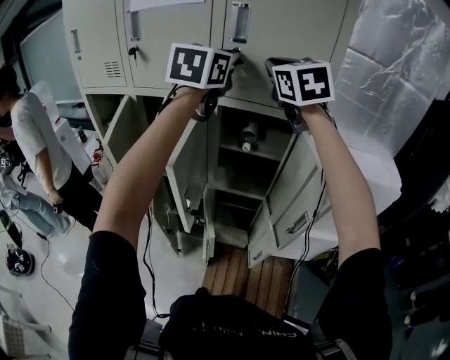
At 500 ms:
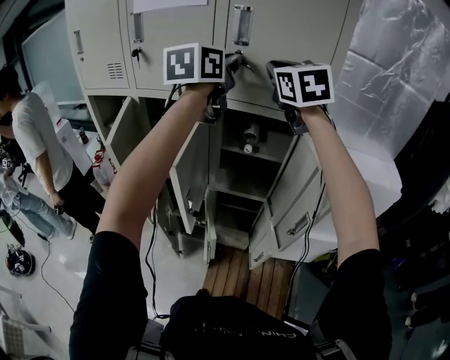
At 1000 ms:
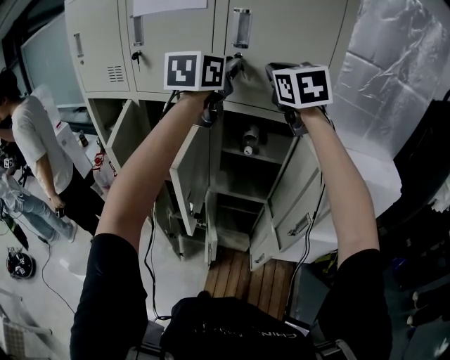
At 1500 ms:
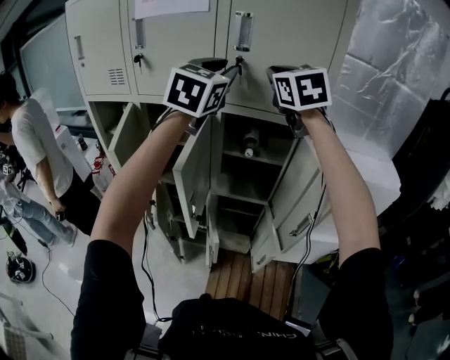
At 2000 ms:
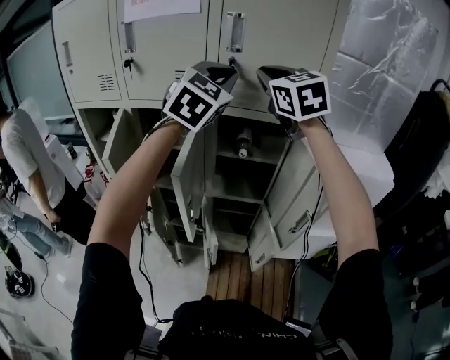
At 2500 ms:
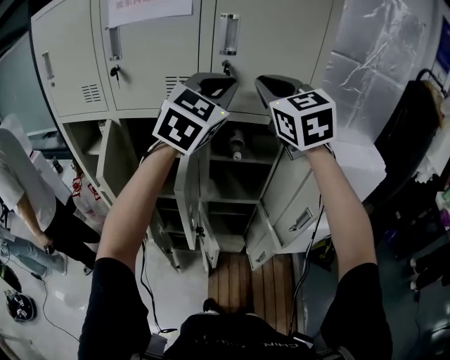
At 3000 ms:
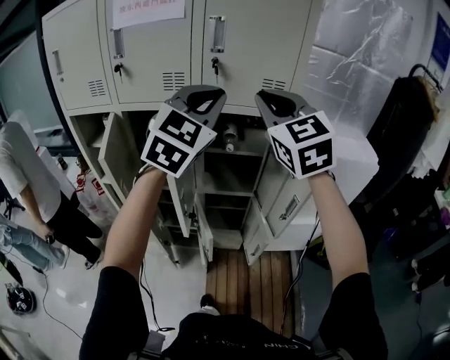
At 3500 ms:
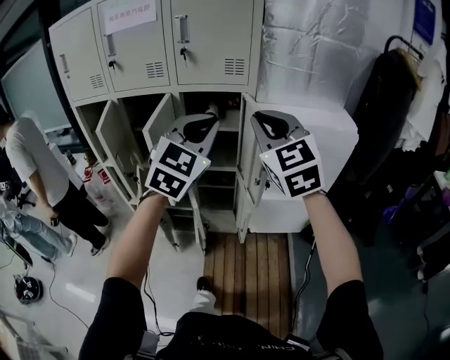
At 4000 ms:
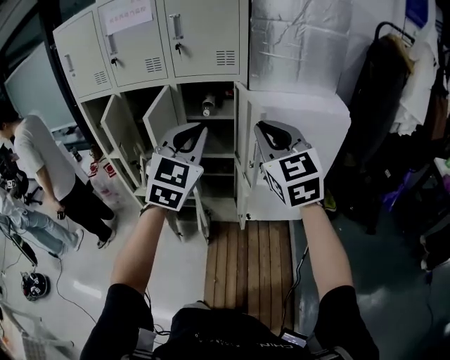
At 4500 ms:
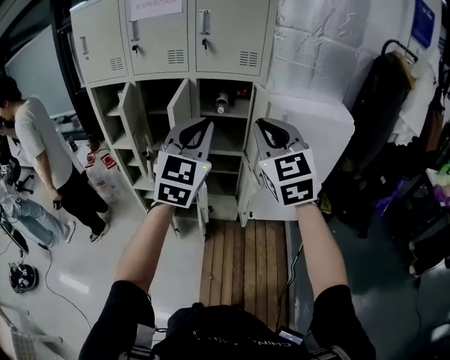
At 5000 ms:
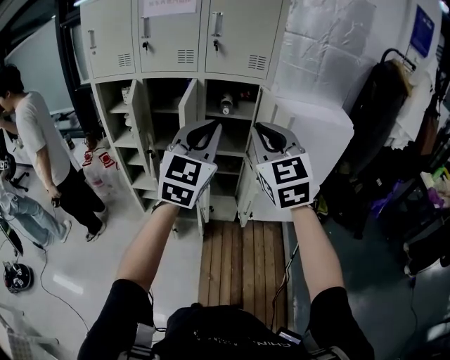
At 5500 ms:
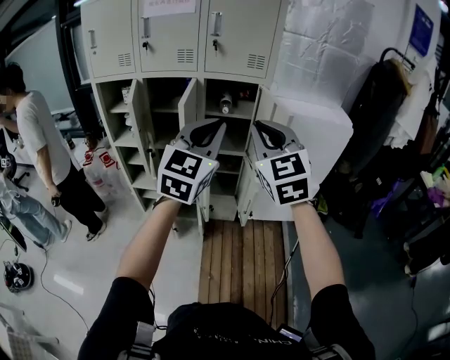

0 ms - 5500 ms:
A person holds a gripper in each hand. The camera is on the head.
0 ms - 2000 ms: The left gripper turns by roughly 30 degrees.
2000 ms - 3500 ms: The two grippers go approximately 30 cm backward and to the right.
3500 ms - 5500 ms: Both grippers move backward and to the left, roughly 15 cm.

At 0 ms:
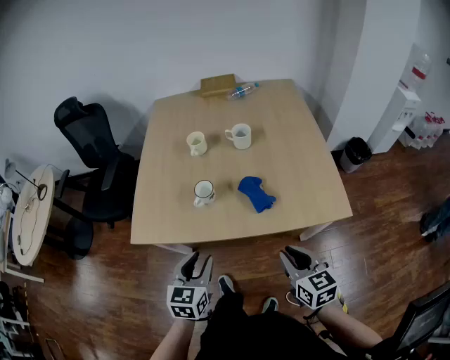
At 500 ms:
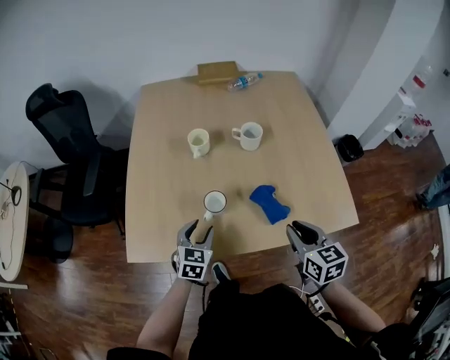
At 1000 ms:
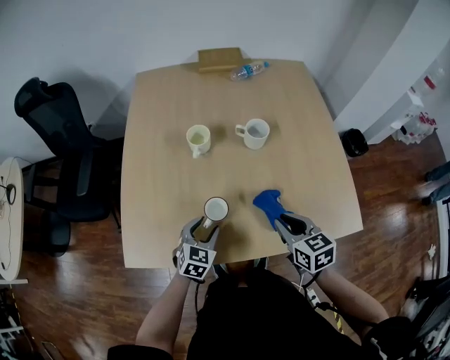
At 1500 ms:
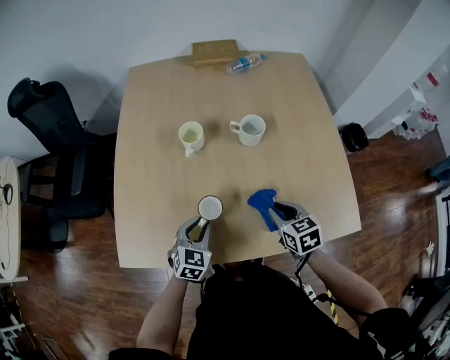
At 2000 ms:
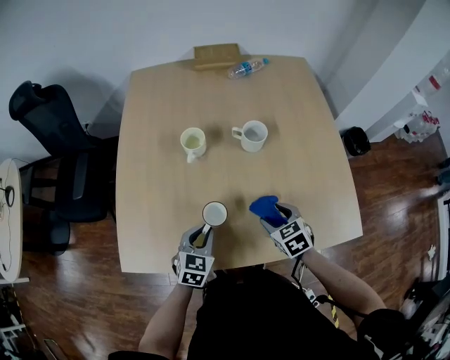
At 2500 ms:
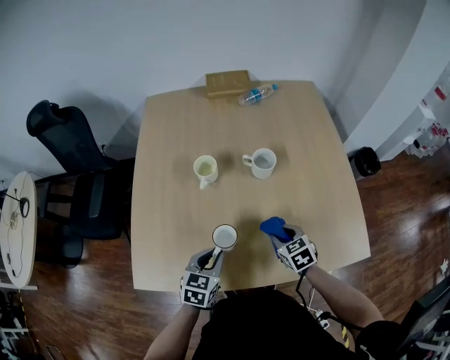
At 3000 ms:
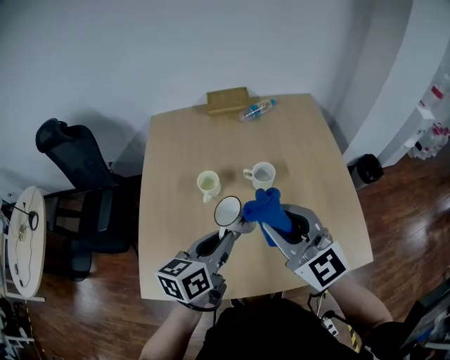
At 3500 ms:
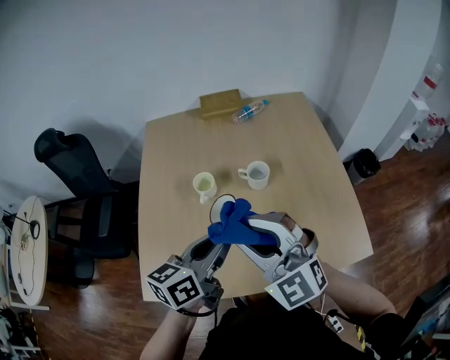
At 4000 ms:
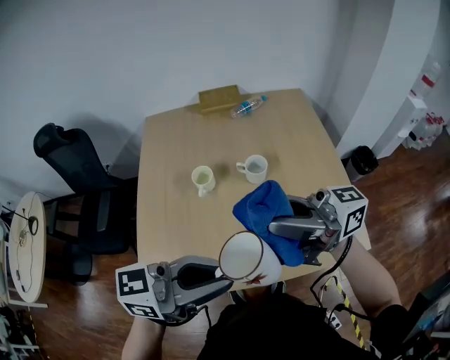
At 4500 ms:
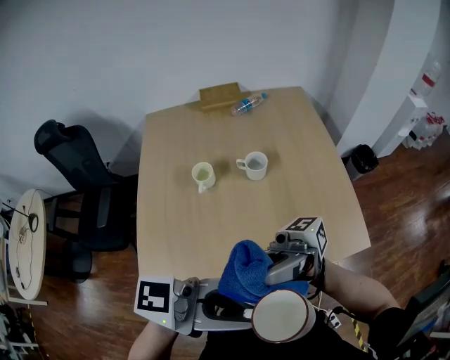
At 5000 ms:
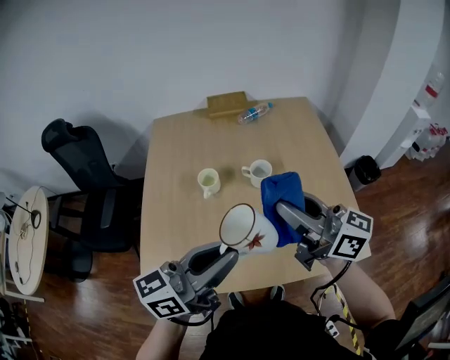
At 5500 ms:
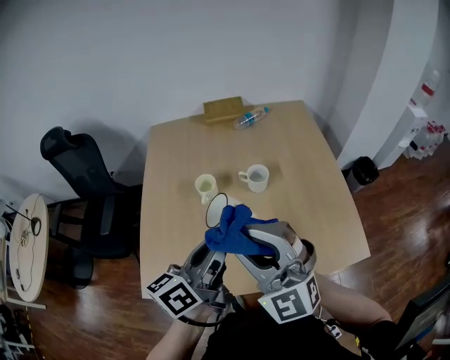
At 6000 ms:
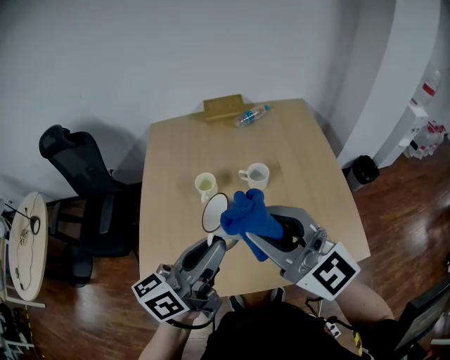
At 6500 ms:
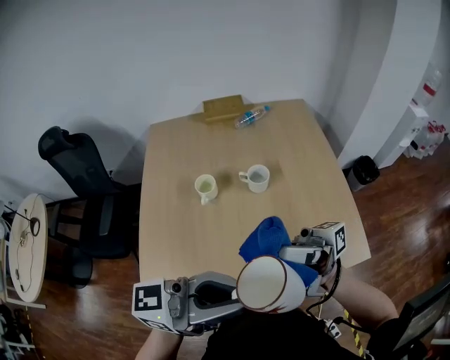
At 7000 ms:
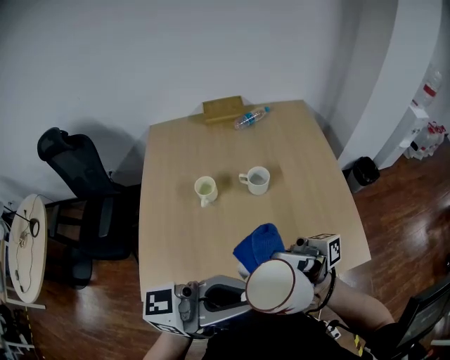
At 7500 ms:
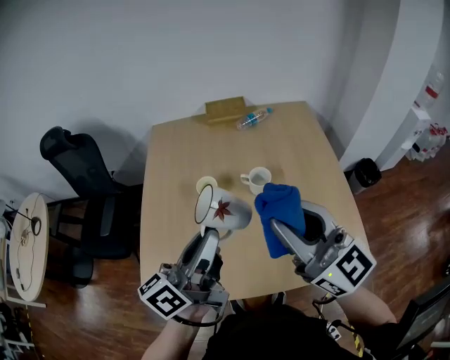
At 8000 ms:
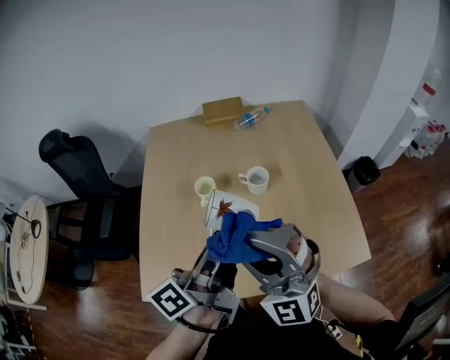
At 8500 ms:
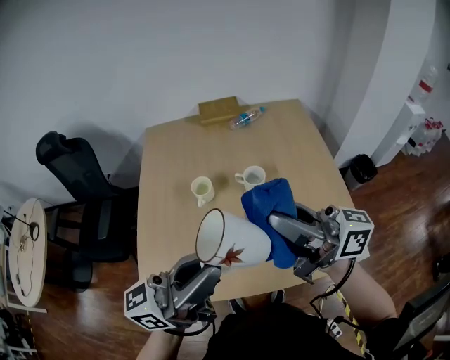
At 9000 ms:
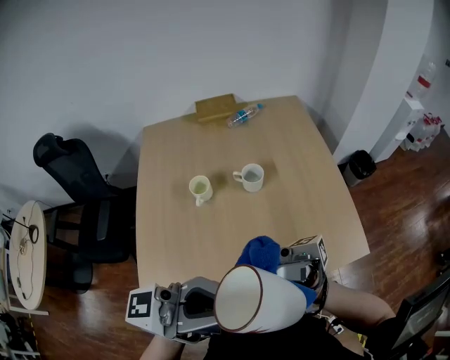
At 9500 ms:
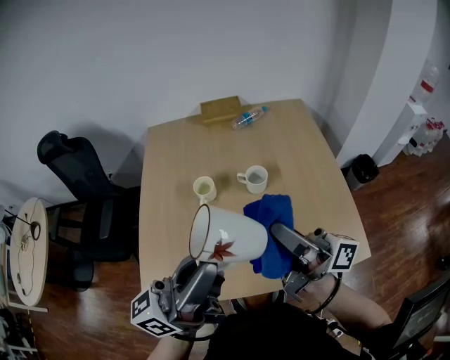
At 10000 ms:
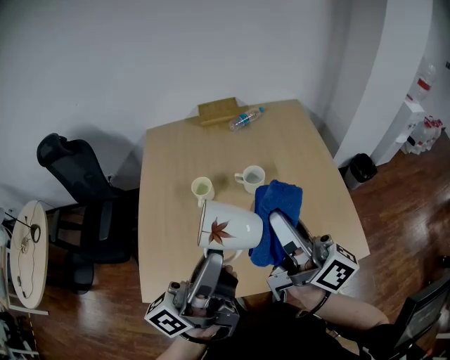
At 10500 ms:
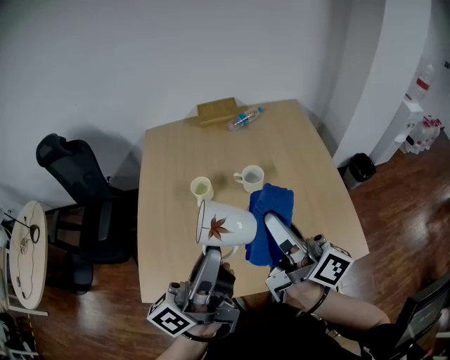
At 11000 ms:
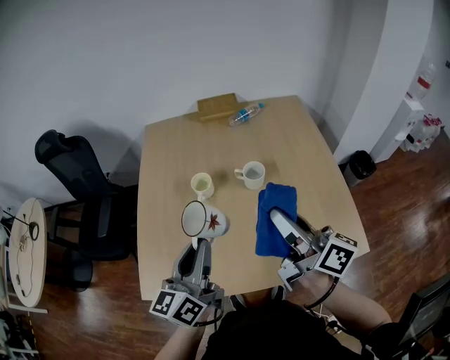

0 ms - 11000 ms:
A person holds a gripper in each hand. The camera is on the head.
0 ms - 2000 ms: Both grippers travel together forward and downward, about 30 cm. The left gripper closes up, while the right gripper changes its angle by approximately 30 degrees, and opens.
2000 ms - 3500 ms: The grippers both shift upward by roughly 30 cm. The left gripper swivels roughly 40 degrees, while the right gripper tilts its fingers roughly 40 degrees upward, and closes its fingers.
3500 ms - 5500 ms: The left gripper travels upward and back again, approximately 10 cm each way.
5500 ms - 7500 ms: The right gripper changes place by some 10 cm, and rolls clockwise, seen from behind, by some 40 degrees.
7500 ms - 9000 ms: The left gripper shifts by roughly 15 cm, and rotates approximately 50 degrees. Meanwhile the right gripper ends up approximately 10 cm from where it was, and rolls clockwise, seen from behind, by some 100 degrees.
9000 ms - 11000 ms: The left gripper moves downward, roughly 15 cm, and tilts its fingers about 30 degrees downward. Meanwhile the right gripper shifts by some 15 cm, and angles its fingers downward, by approximately 50 degrees.

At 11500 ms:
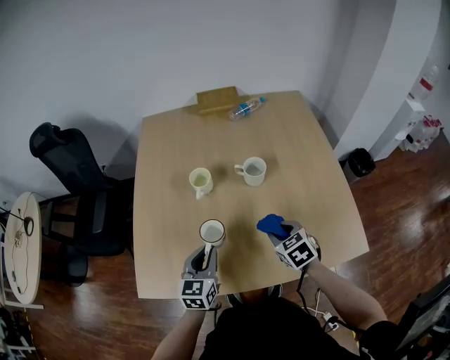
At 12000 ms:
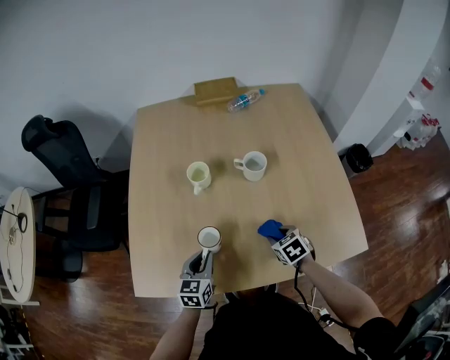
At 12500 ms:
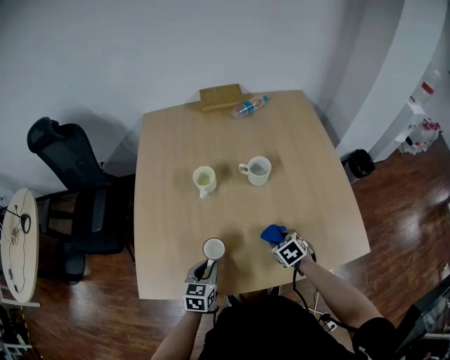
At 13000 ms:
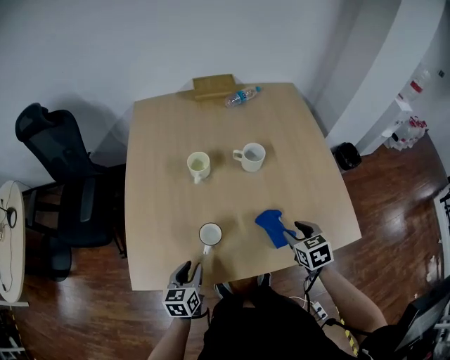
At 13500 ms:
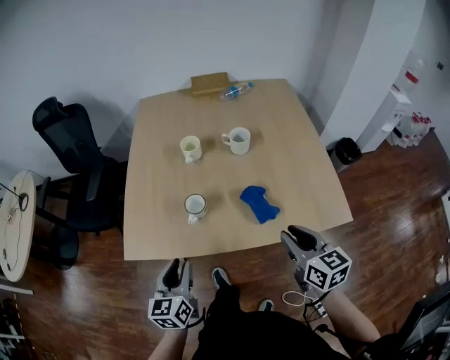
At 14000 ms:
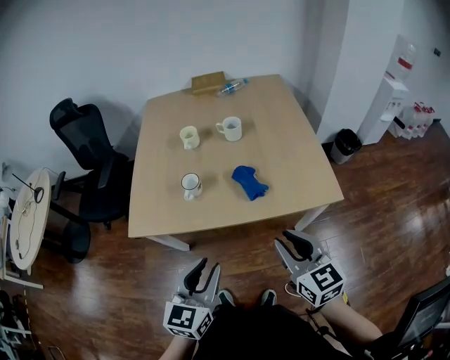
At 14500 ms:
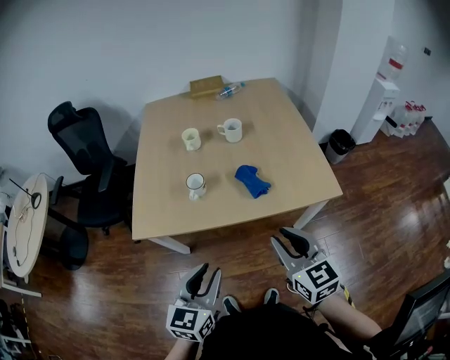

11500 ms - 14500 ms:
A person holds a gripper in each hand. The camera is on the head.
11500 ms - 13000 ms: The right gripper moves backward, about 5 cm, and goes downward and returns, about 10 cm each way; the left gripper travels downward, to the left and backward by about 15 cm.
13000 ms - 14500 ms: The left gripper goes roughly 35 cm backward, upward and to the right, and swivels some 20 degrees; the right gripper goes roughly 35 cm backward and upward, points its fingers roughly 40 degrees further upward, and closes.

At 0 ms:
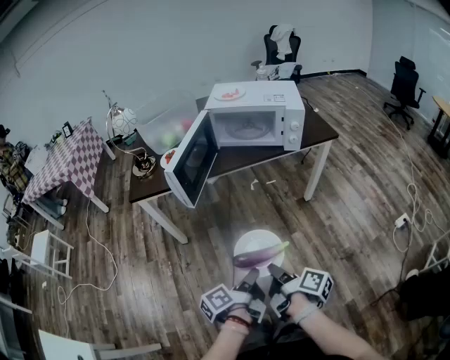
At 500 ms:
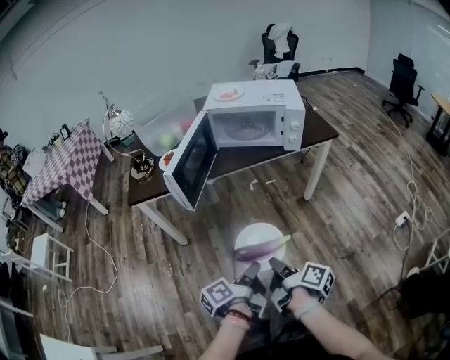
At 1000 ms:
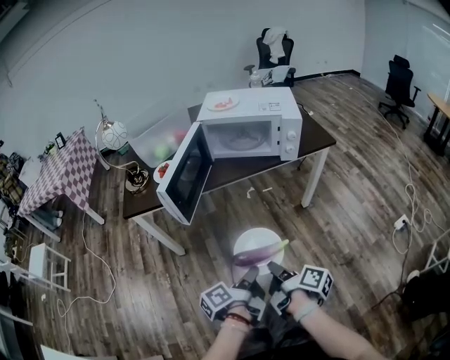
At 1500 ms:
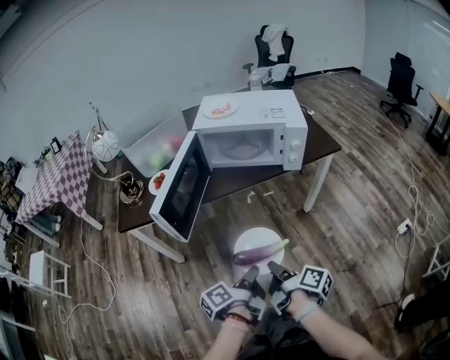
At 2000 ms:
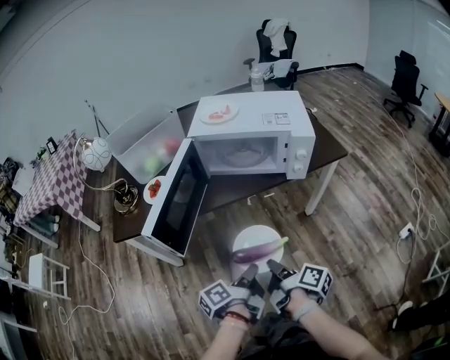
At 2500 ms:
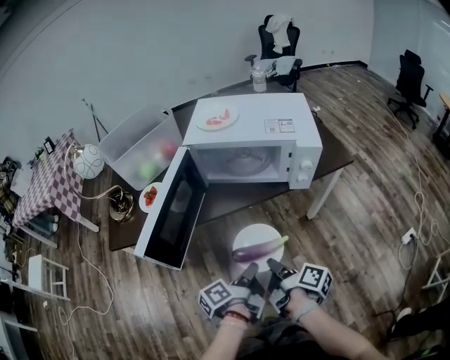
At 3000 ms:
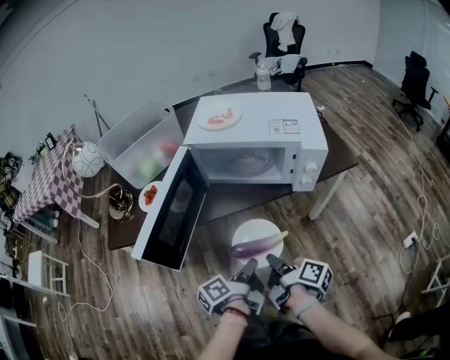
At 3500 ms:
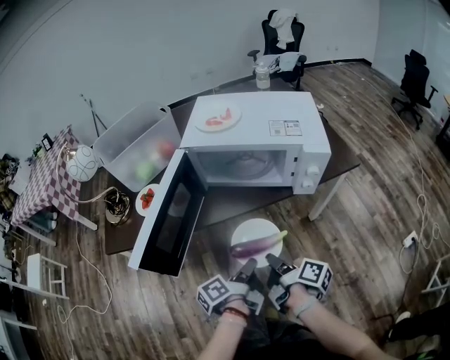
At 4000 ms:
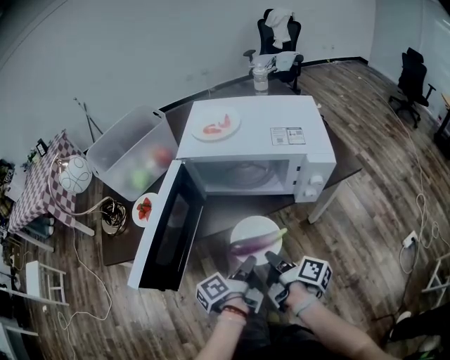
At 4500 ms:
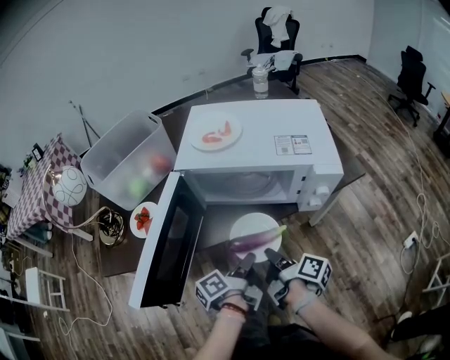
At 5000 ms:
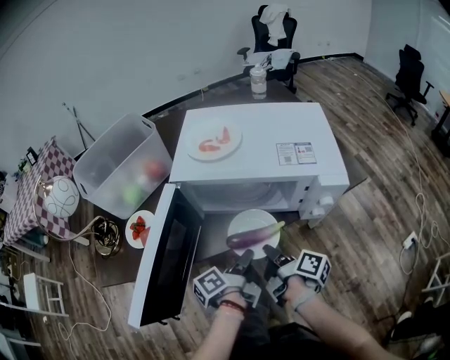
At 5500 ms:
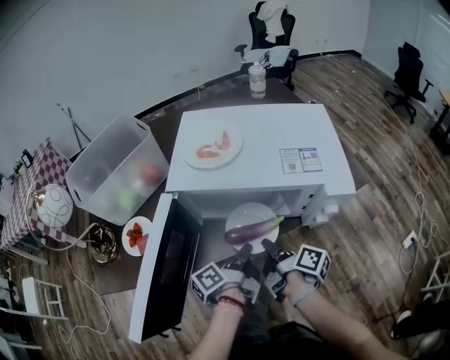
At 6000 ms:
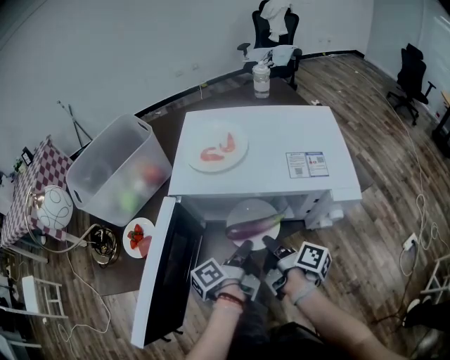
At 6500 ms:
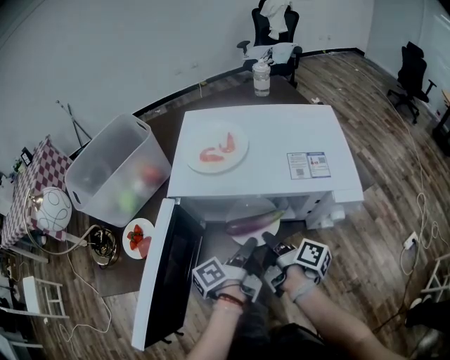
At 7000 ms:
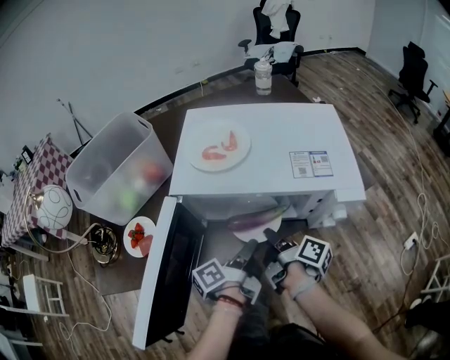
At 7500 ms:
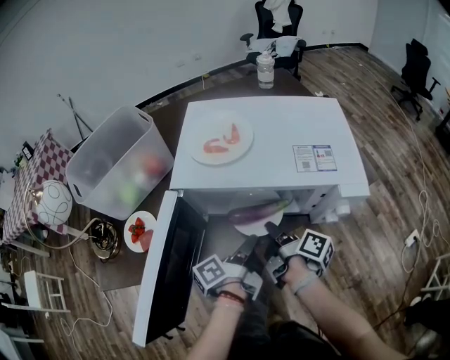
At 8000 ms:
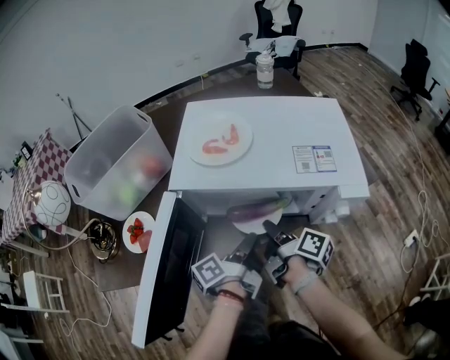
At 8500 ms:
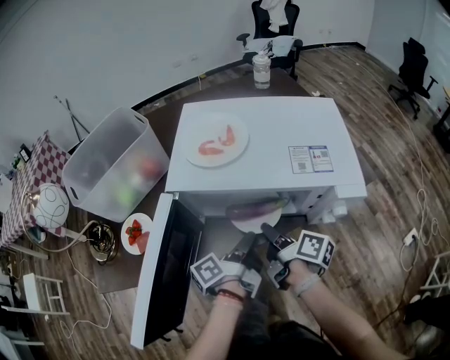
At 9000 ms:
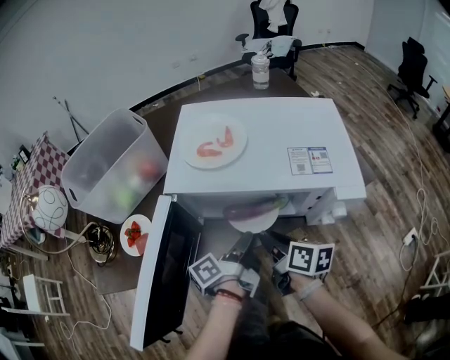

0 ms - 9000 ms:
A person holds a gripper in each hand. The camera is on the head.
0 ms - 2000 ms: The right gripper shifts by some 20 cm.
2000 ms - 4500 ms: The right gripper shifts by about 20 cm.
4500 ms - 7000 ms: The right gripper ends up roughly 15 cm from where it was.
7000 ms - 9000 ms: The right gripper rotates approximately 40 degrees.
